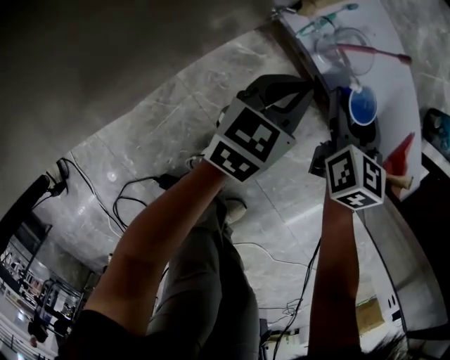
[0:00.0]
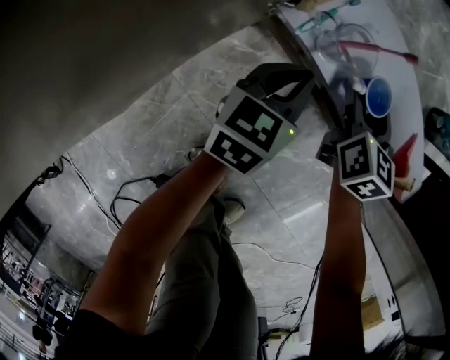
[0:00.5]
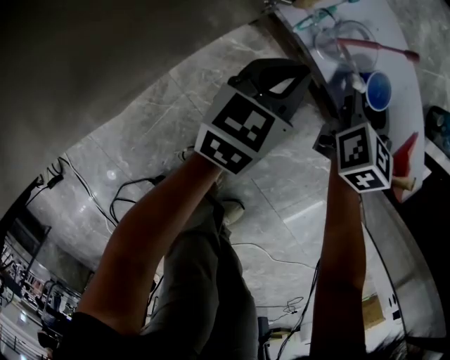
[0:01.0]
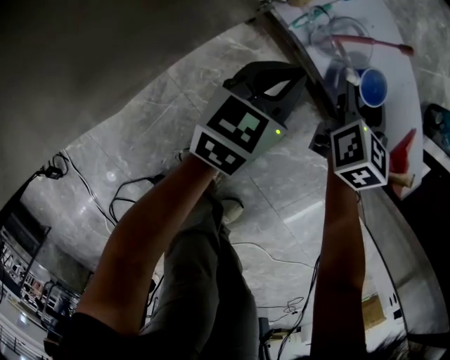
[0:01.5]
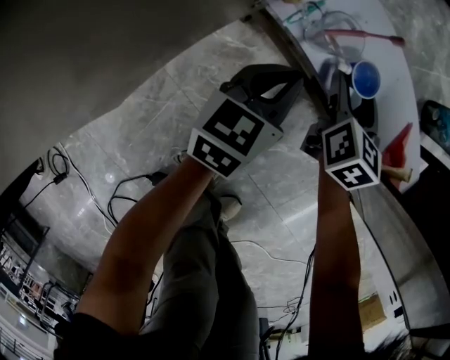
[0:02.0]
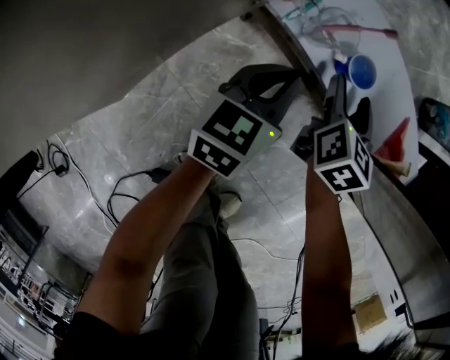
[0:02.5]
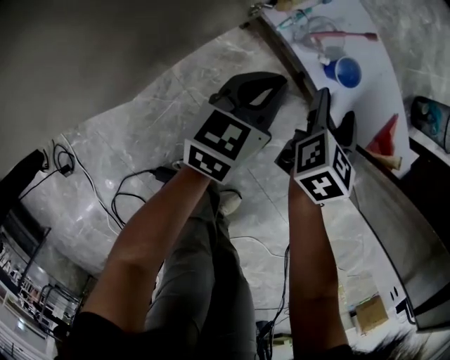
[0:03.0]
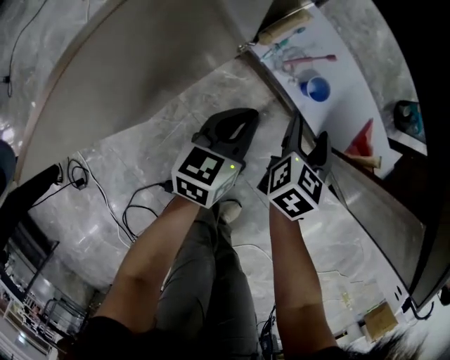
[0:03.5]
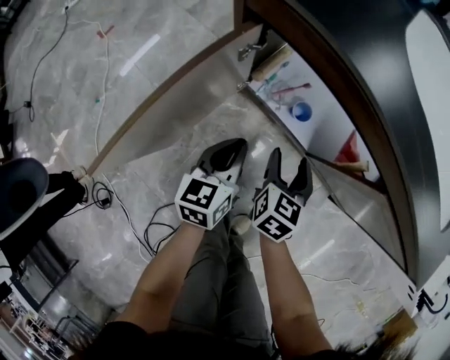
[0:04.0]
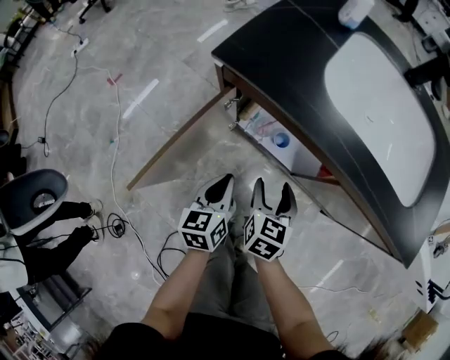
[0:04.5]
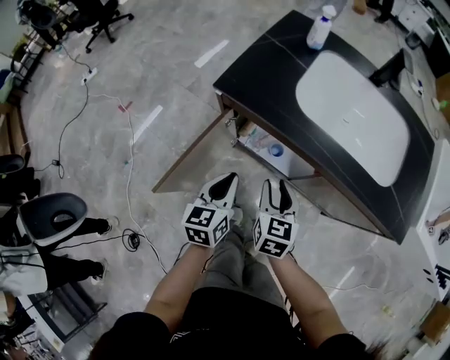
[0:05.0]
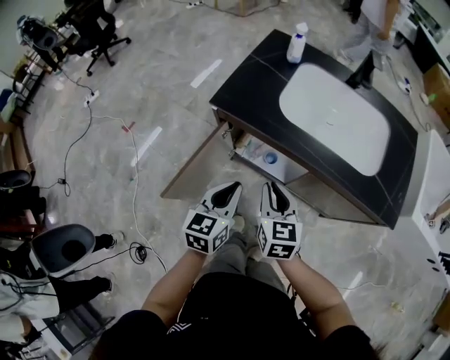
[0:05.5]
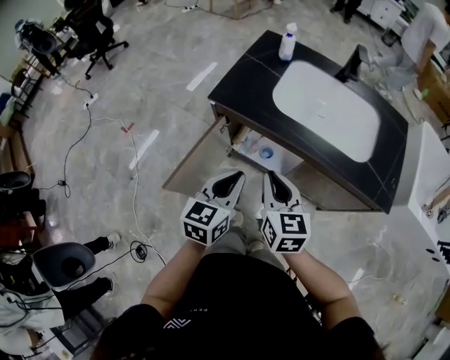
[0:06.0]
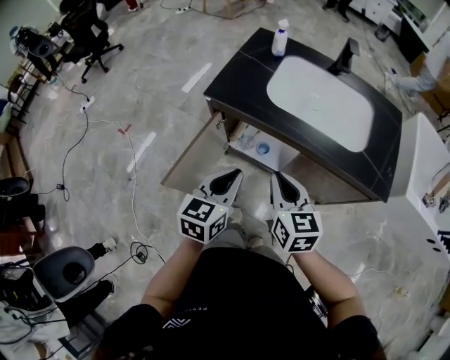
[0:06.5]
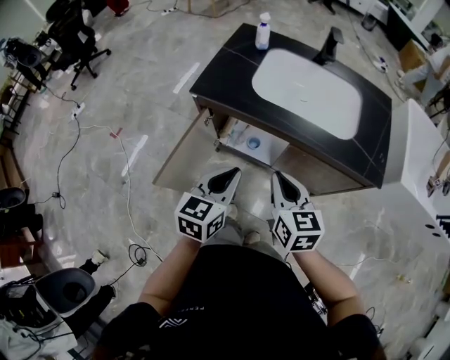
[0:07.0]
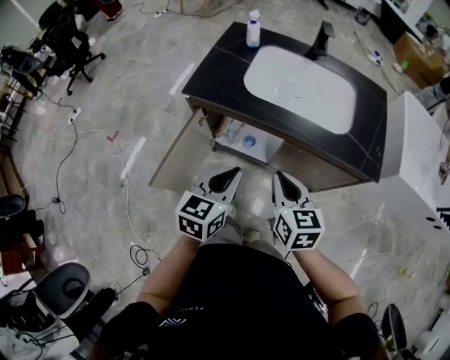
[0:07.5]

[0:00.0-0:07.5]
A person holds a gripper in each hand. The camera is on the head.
0:00.0 to 0:02.0: The grippers move only a little.
0:02.0 to 0:04.0: Both grippers travel together upward and backward, roughly 25 cm.
0:04.0 to 0:05.5: The two grippers go about 30 cm upward. The right gripper closes.
0:05.5 to 0:07.5: The right gripper moves to the right, backward and upward, roughly 15 cm. Meanwhile the left gripper is displaced to the right and upward by roughly 10 cm.

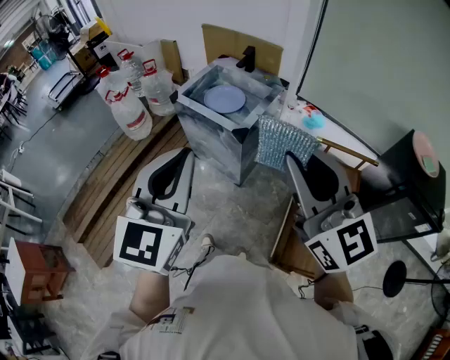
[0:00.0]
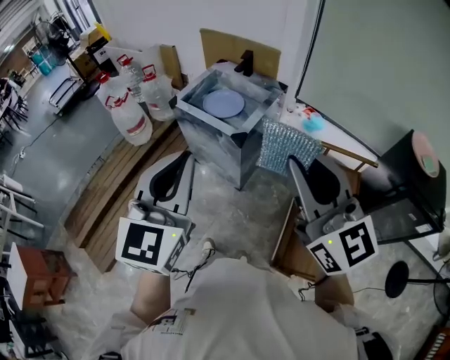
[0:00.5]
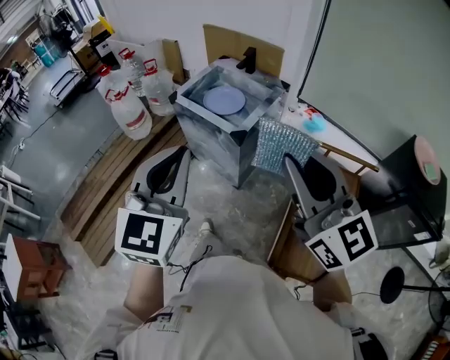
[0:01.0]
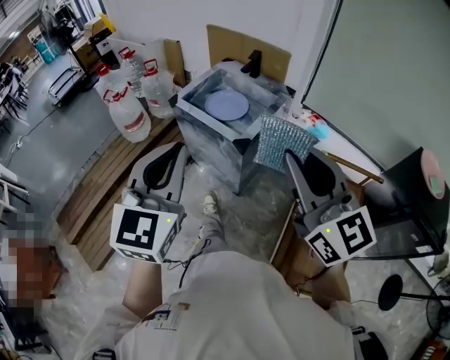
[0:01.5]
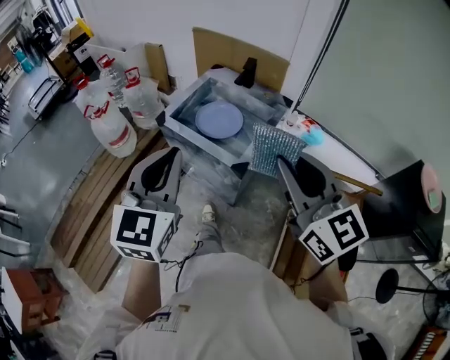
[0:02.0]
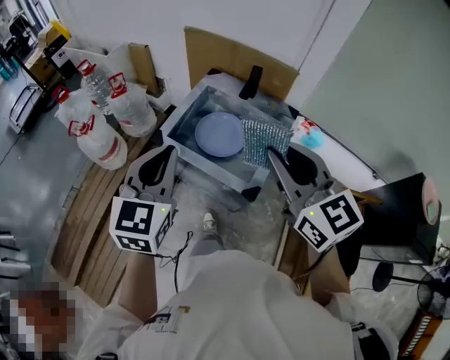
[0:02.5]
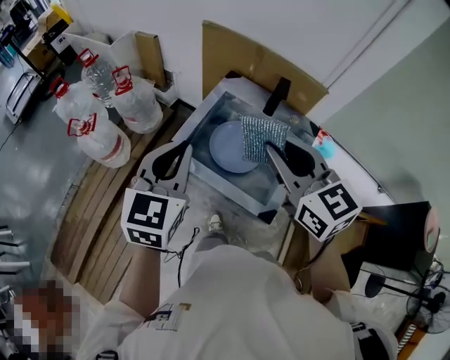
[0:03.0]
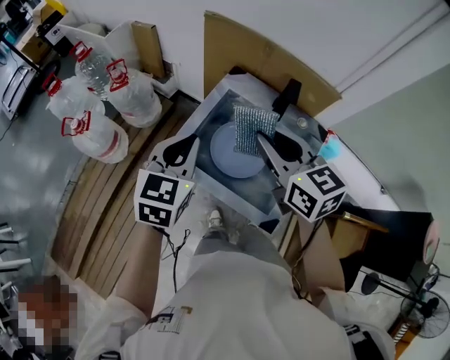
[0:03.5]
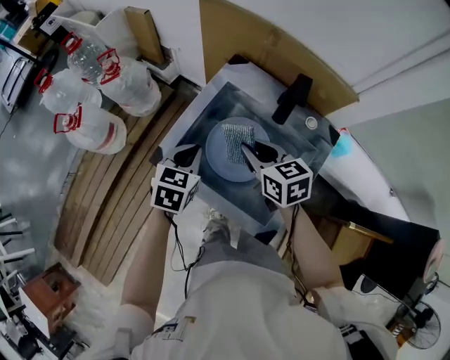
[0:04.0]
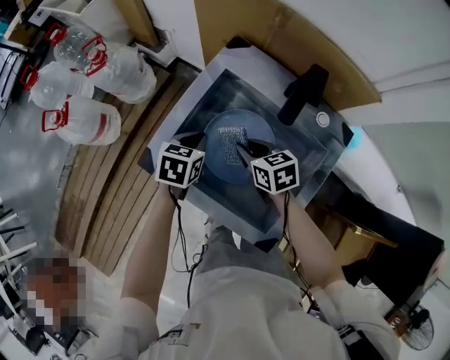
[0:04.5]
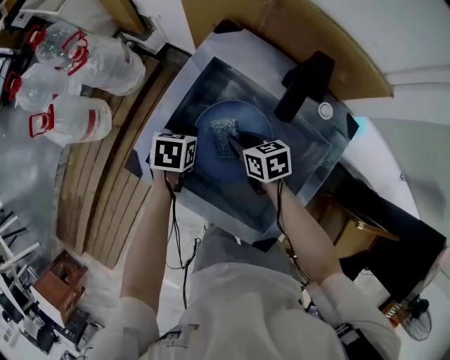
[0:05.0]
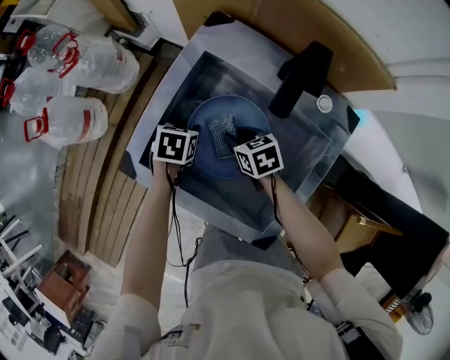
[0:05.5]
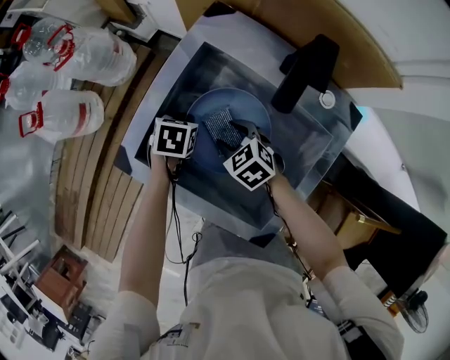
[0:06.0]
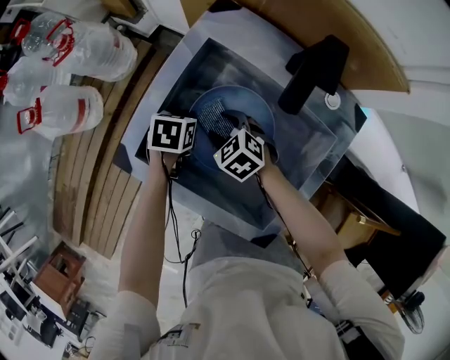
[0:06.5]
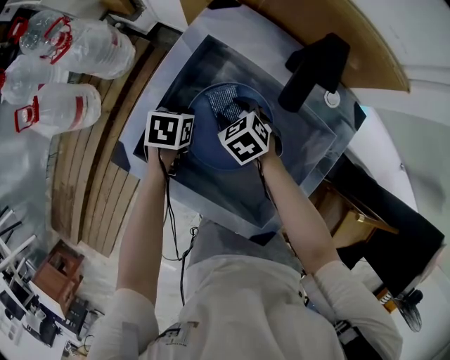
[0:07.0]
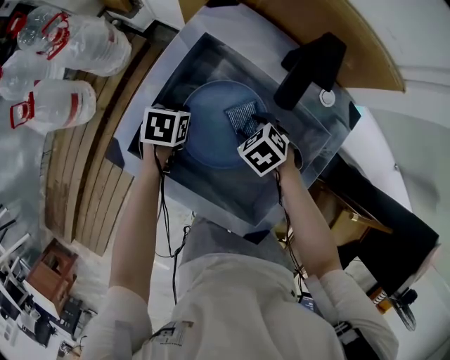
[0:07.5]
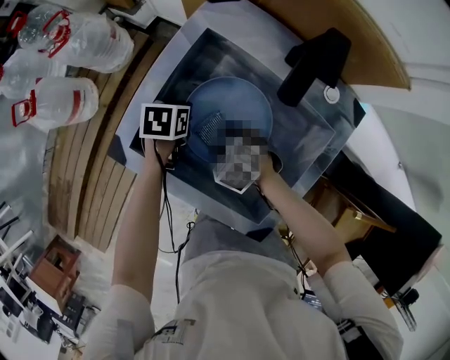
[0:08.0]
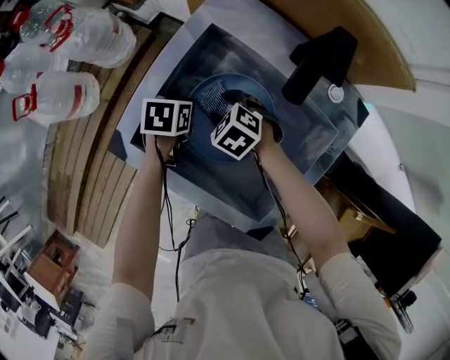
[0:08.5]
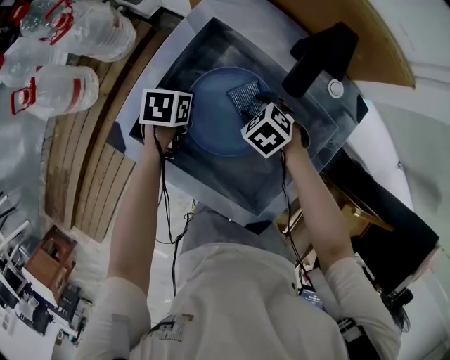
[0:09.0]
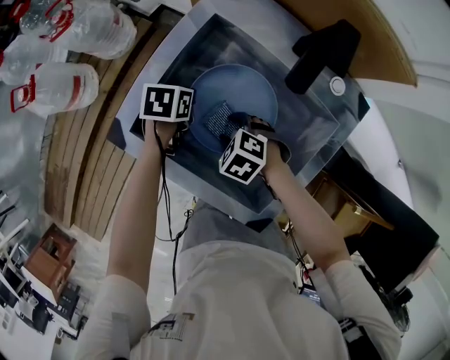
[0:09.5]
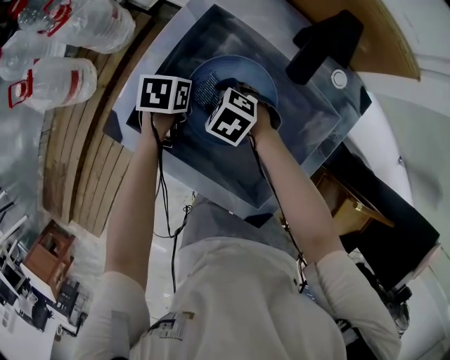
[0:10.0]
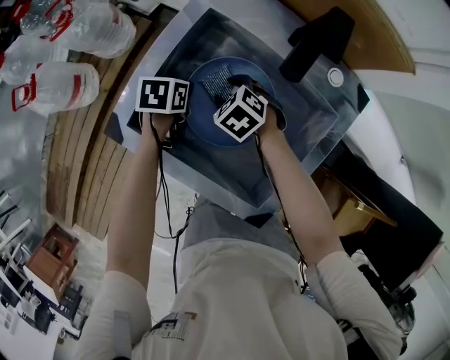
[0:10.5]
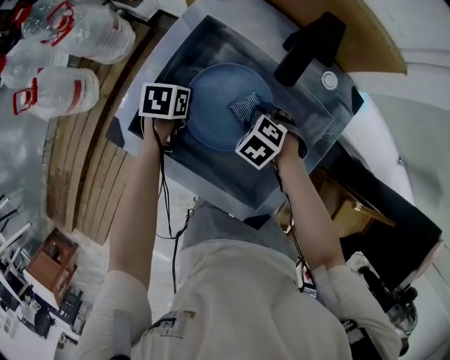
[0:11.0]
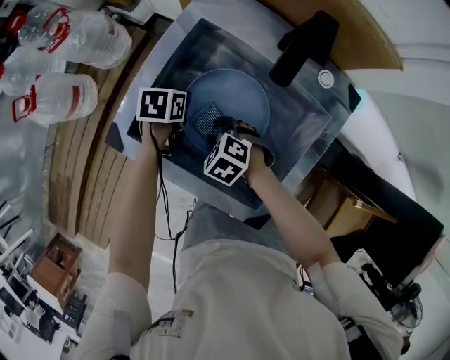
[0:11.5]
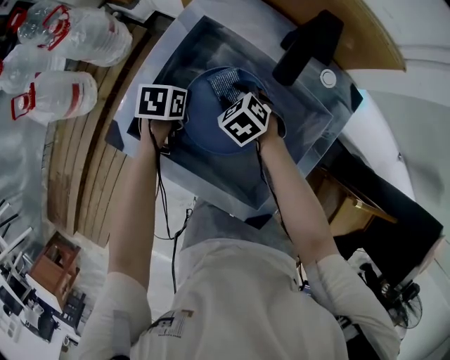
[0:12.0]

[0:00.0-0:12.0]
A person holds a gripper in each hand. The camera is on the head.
0:00.0 to 0:02.0: The two grippers go roughly 25 cm forward.
0:02.0 to 0:04.0: The two grippers travel together, forward, approximately 50 cm. The two grippers go about 30 cm downward. The right gripper tips its fingers downward by some 30 degrees. Meanwhile the left gripper tips its fingers downward by approximately 40 degrees.
0:04.0 to 0:06.0: Both grippers travel together downward, roughly 20 cm. The right gripper changes its angle by roughly 30 degrees, and opens up; the left gripper rotates about 30 degrees, and opens, then closes once more.
0:06.0 to 0:08.0: The right gripper shifts by about 5 cm.

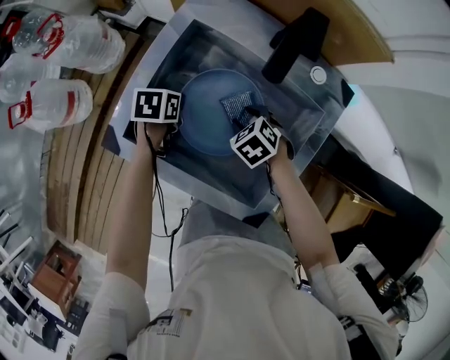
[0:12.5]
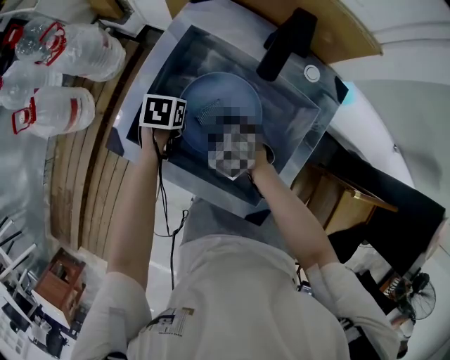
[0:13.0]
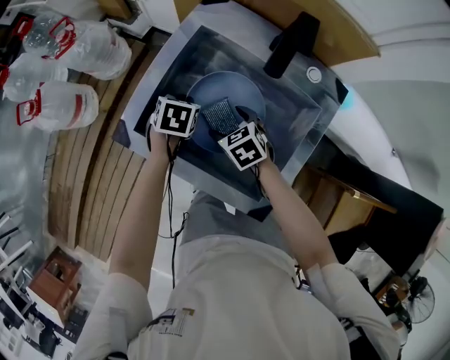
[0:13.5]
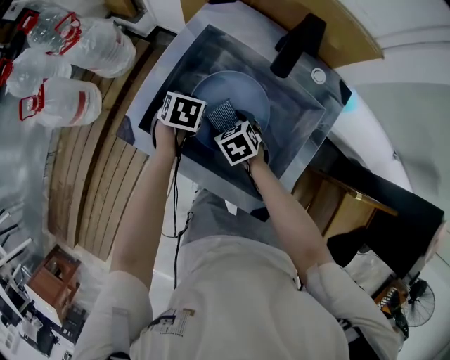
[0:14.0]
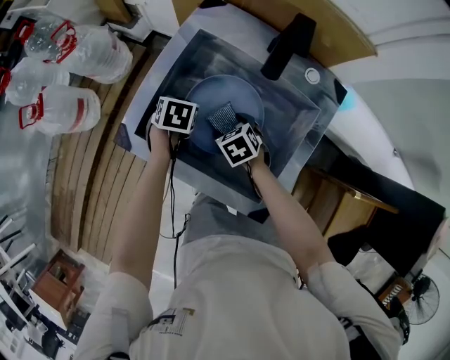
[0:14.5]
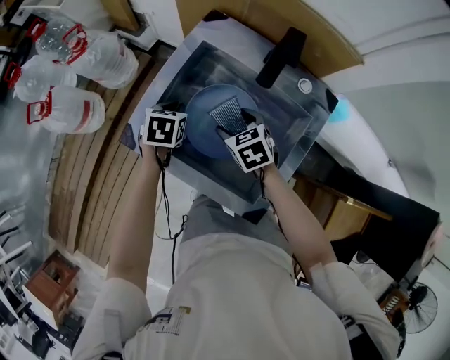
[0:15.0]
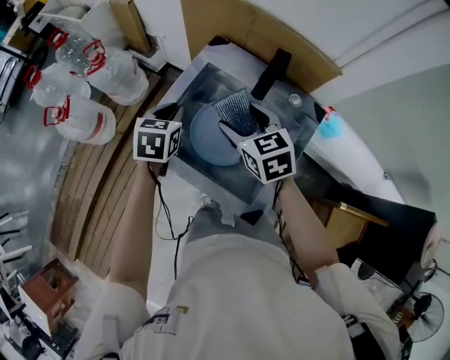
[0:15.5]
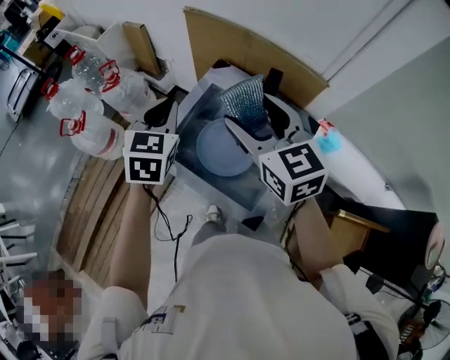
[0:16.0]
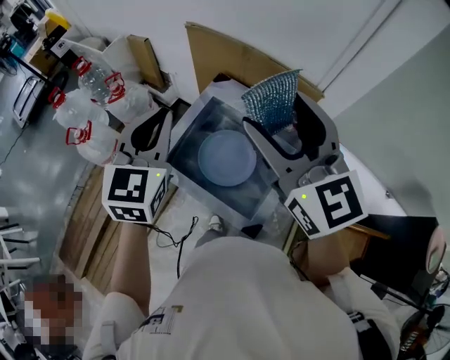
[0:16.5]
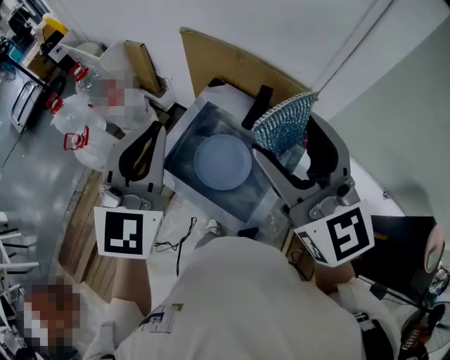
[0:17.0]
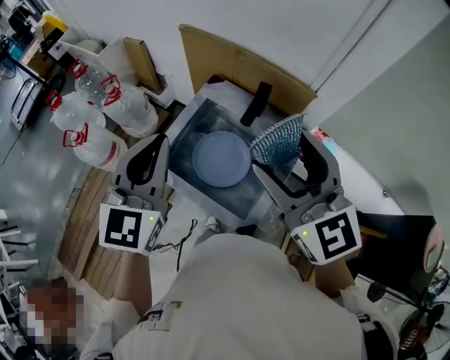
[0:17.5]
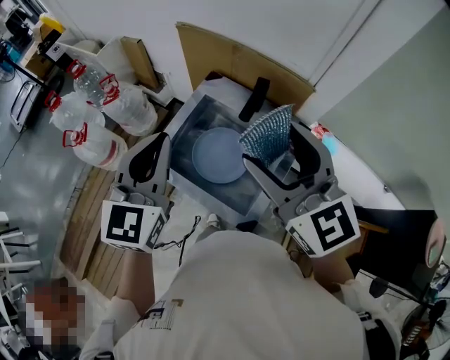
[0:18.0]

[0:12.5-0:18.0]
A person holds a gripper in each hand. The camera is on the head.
0:12.5 to 0:14.5: The right gripper travels to the left by roughly 5 cm, and opens.
0:14.5 to 0:16.0: Both grippers move upward, some 40 cm. The right gripper tips its fingers upward by about 50 degrees, while the left gripper tilts its fingers approximately 40 degrees upward.
0:16.0 to 0:18.0: The two grippers go approximately 15 cm upward and backward. The left gripper changes its angle by about 20 degrees.

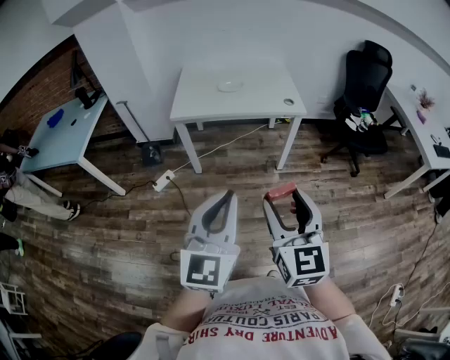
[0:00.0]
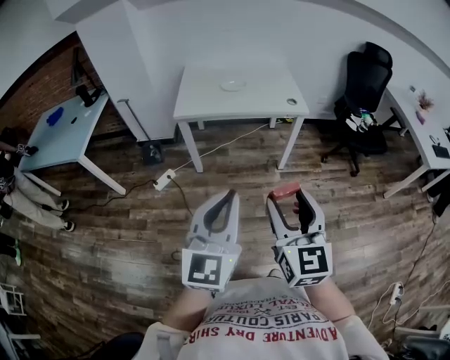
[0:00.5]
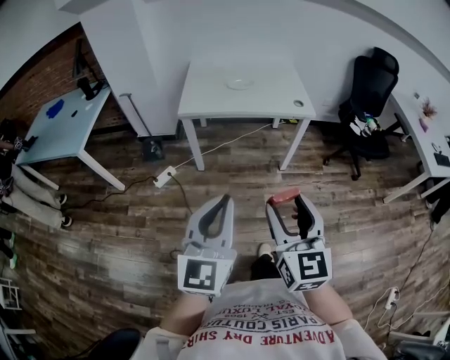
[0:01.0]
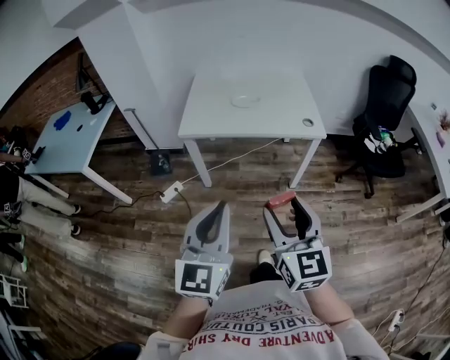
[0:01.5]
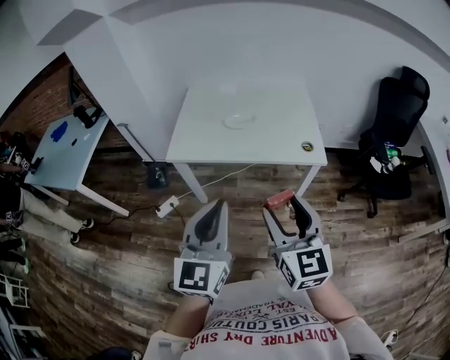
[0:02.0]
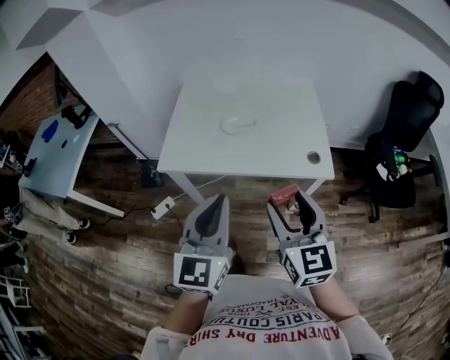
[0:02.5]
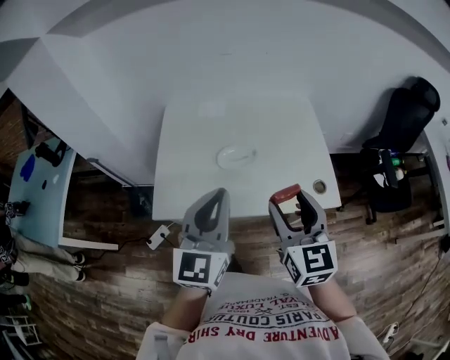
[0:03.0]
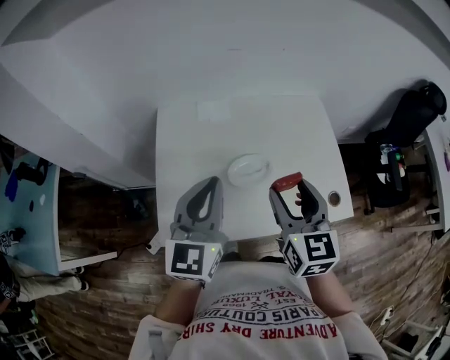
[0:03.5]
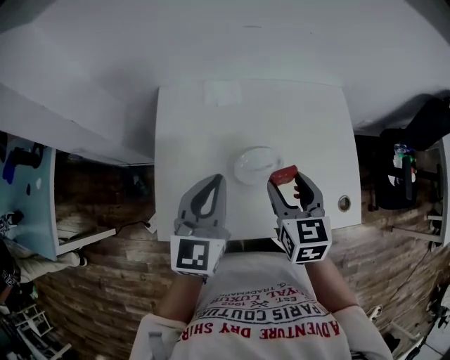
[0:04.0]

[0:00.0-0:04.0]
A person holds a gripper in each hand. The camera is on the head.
0:00.0 to 0:02.0: Both grippers travel together forward, about 30 cm.
0:02.0 to 0:04.0: Both grippers are carried forward, approximately 50 cm. The right gripper turns by roughly 30 degrees.
